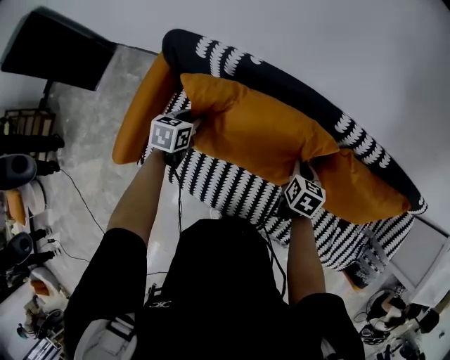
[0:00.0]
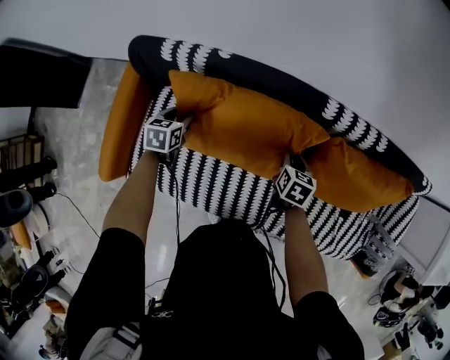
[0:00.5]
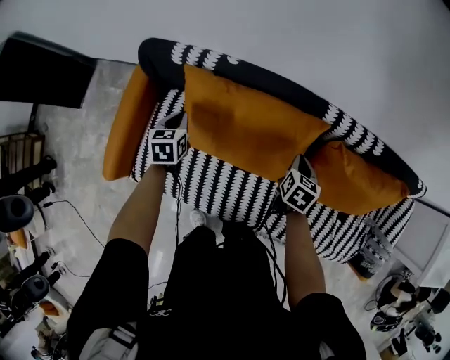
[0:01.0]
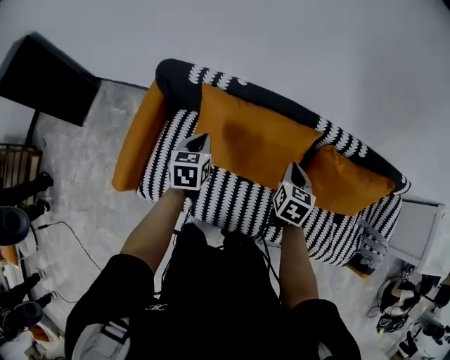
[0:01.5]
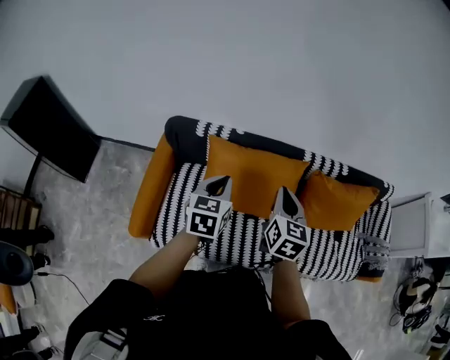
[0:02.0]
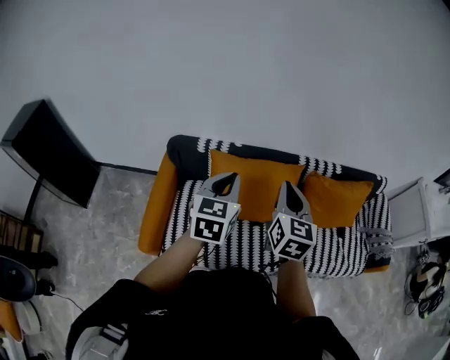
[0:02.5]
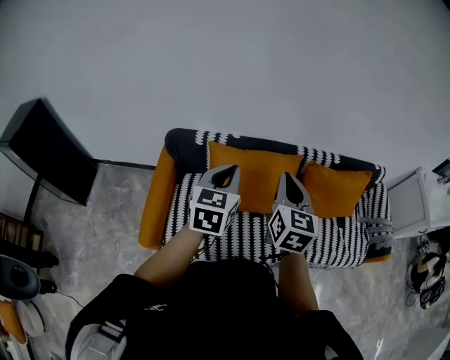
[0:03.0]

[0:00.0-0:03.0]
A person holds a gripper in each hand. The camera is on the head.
0:00.0 to 0:01.5: The two grippers go approximately 10 cm upward.
0:01.5 to 0:03.0: The left gripper moves upward and backward, about 30 cm, and swivels some 30 degrees, while the right gripper is displaced upward, backward and to the left by about 35 cm, and rotates some 30 degrees.

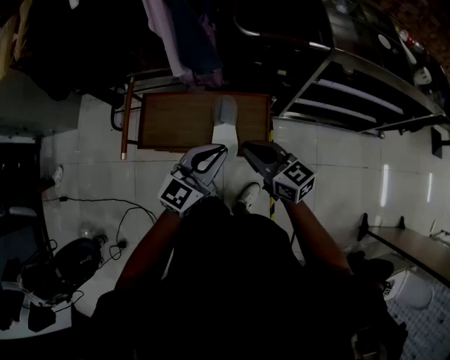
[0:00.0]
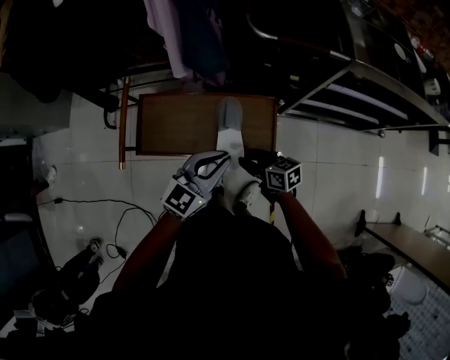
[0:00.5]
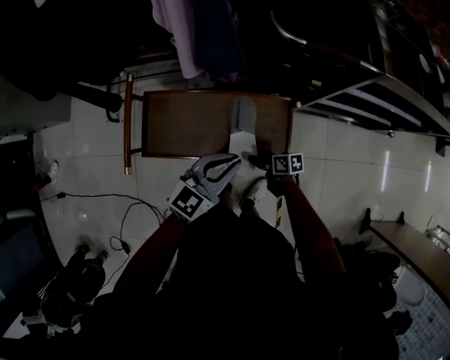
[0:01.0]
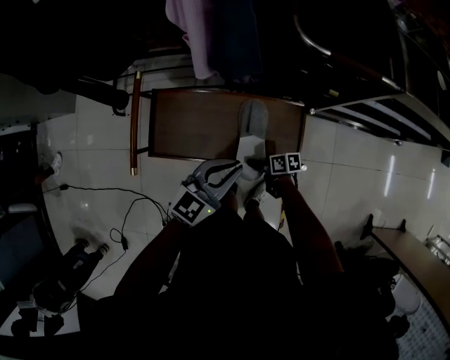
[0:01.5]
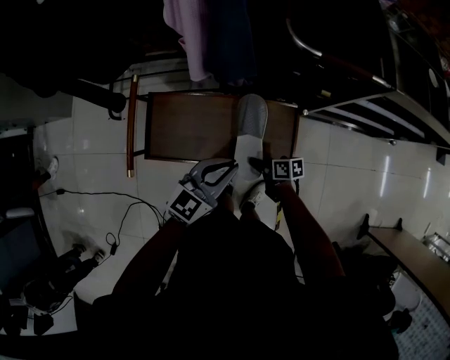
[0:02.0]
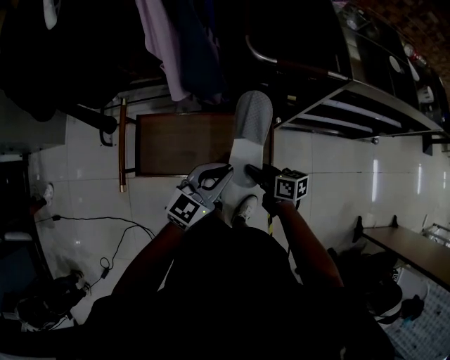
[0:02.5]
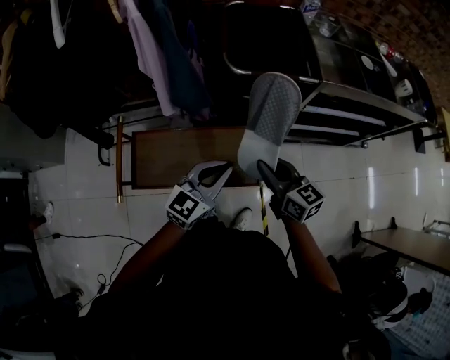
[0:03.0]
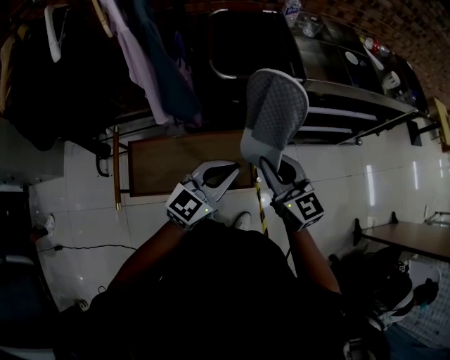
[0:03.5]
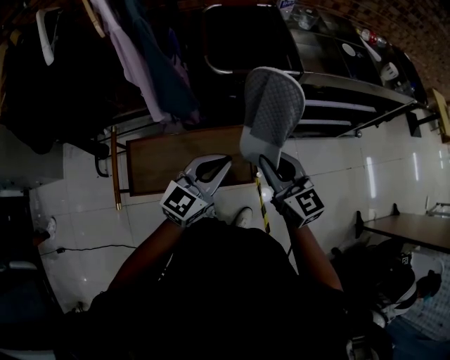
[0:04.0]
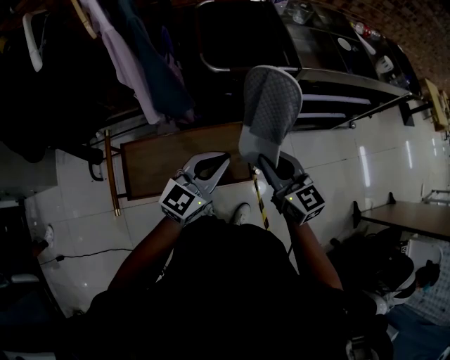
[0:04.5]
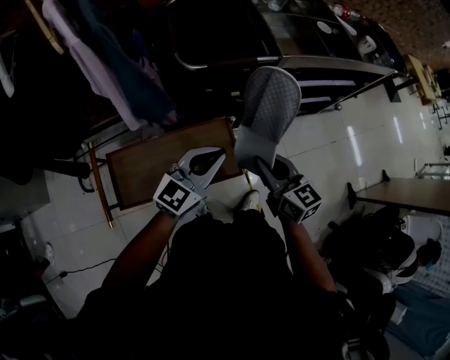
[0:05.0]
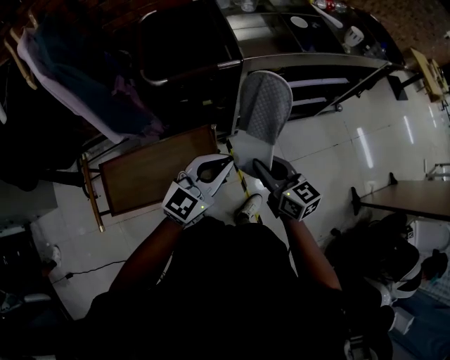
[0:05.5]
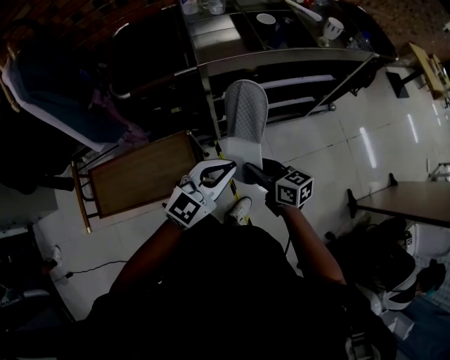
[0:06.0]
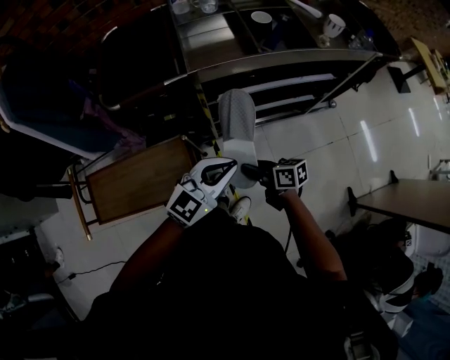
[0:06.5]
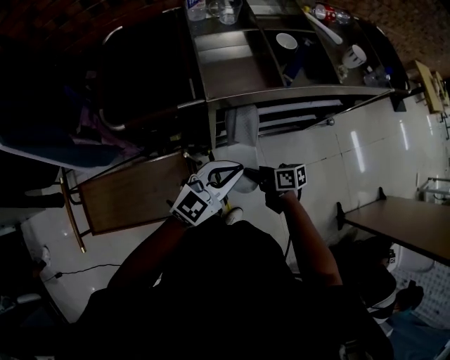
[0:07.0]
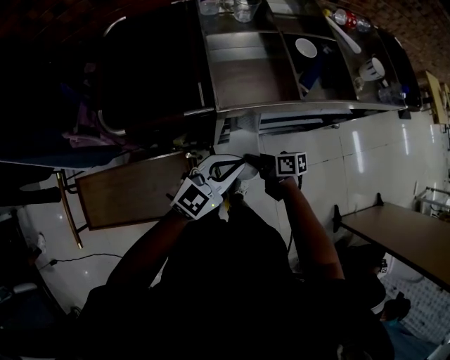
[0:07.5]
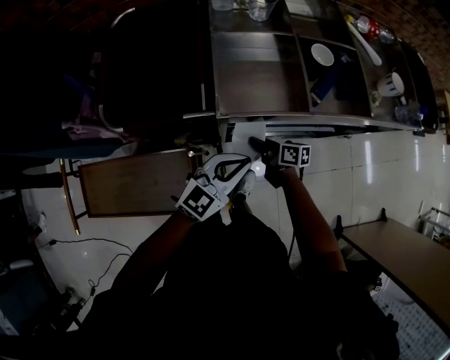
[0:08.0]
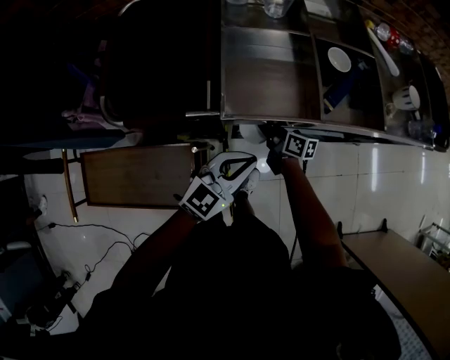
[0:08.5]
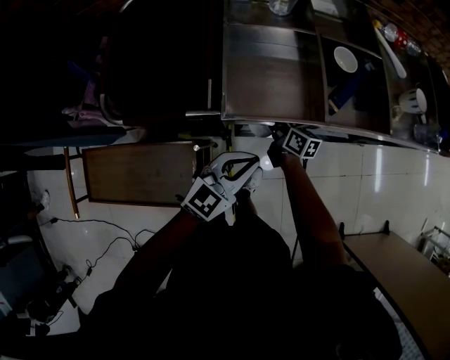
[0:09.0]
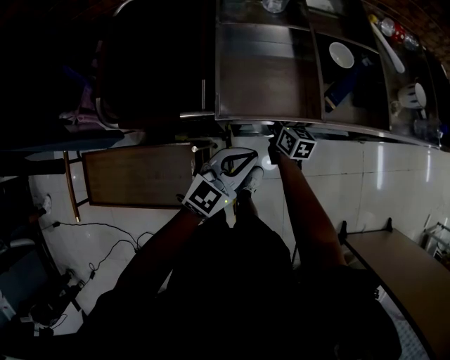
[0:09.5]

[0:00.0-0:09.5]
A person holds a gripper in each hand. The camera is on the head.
0:00.0 to 0:02.0: The left gripper ends up approximately 15 cm from where it was; the right gripper goes about 30 cm downward, twists about 50 degrees clockwise, seen from behind, and opens, then closes again.
0:02.0 to 0:04.0: The right gripper travels upward by about 40 cm, and swivels some 70 degrees. The left gripper heads upward, covering roughly 15 cm.
0:04.0 to 0:05.5: The left gripper travels to the right by some 15 cm; the right gripper goes approximately 15 cm to the right and downward.
0:05.5 to 0:07.5: The right gripper is displaced forward, downward and to the right by roughly 30 cm, and turns by approximately 50 degrees. The left gripper is displaced forward and to the right by about 25 cm.
0:07.5 to 0:09.5: The right gripper moves forward, approximately 20 cm, turns by about 40 degrees, and opens up, while the left gripper travels forward by about 5 cm.

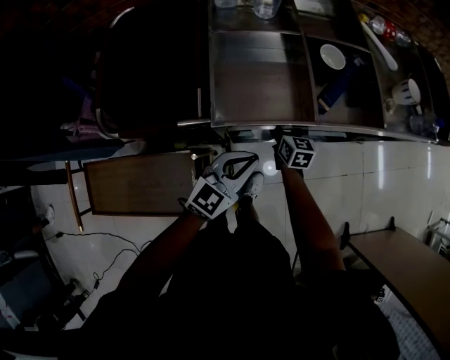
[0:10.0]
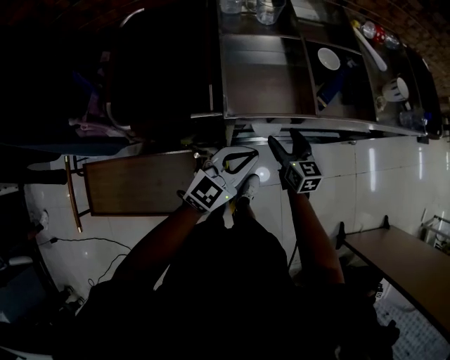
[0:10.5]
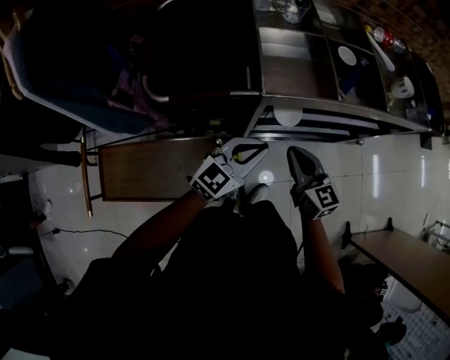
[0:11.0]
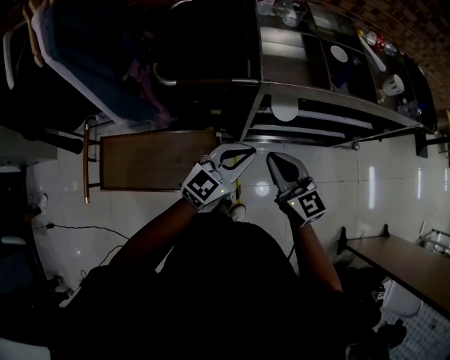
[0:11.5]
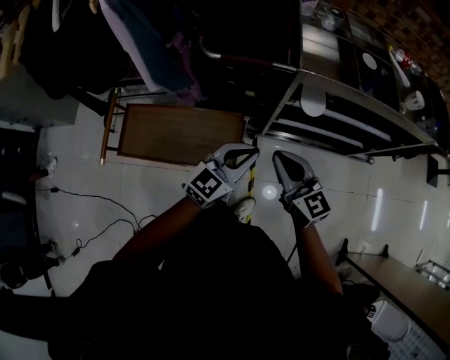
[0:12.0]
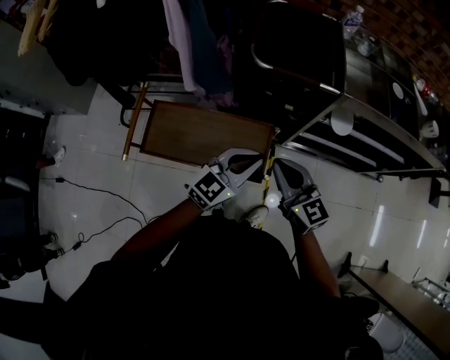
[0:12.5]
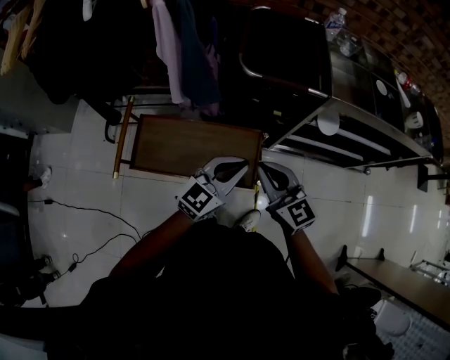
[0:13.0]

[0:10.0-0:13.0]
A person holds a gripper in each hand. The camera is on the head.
0:10.0 to 0:11.5: The left gripper travels backward, upward and to the left by approximately 20 cm; the right gripper moves backward and upward, about 40 cm, swivels about 30 degrees, and closes up.
0:11.5 to 0:13.0: The left gripper goes approximately 25 cm to the left and backward; the right gripper travels to the left by about 25 cm.

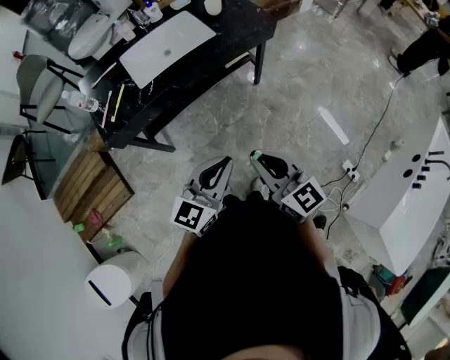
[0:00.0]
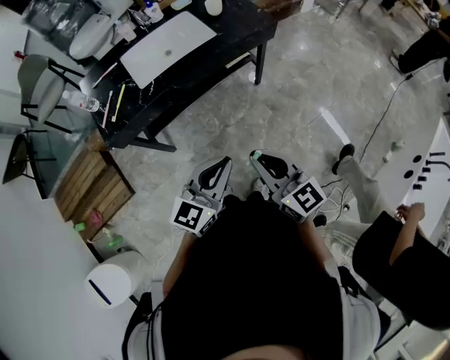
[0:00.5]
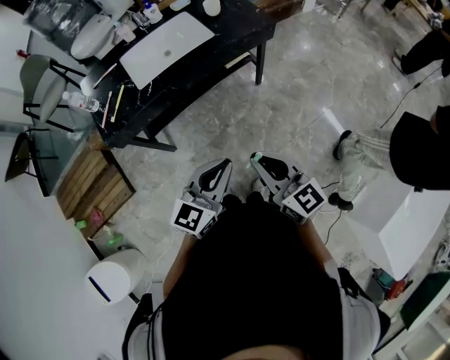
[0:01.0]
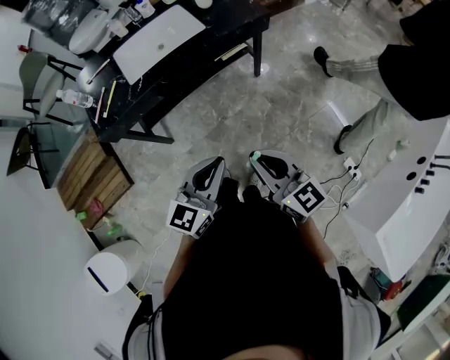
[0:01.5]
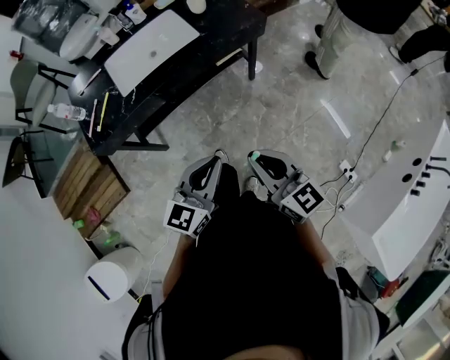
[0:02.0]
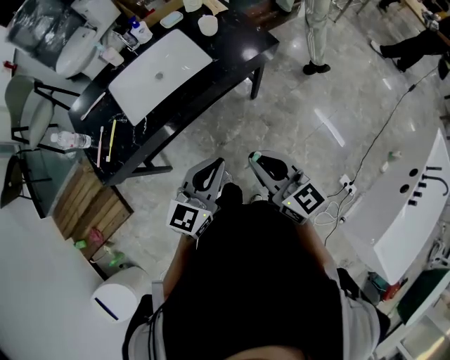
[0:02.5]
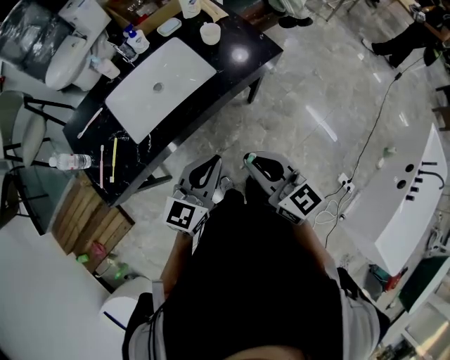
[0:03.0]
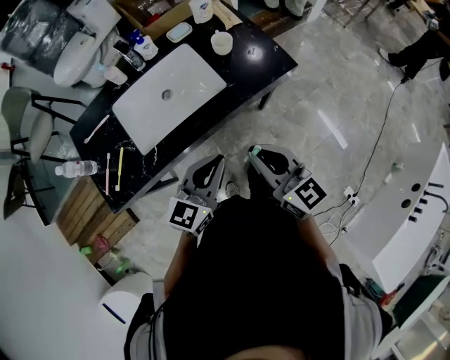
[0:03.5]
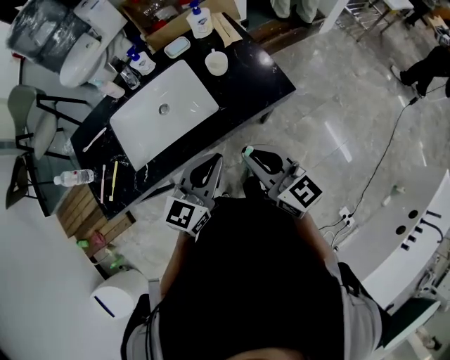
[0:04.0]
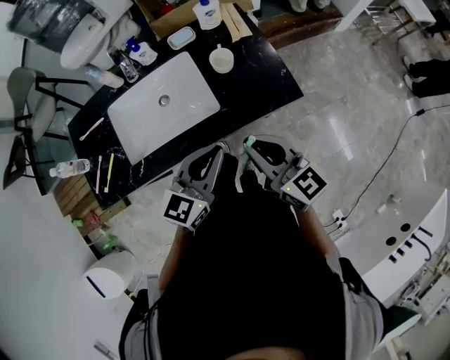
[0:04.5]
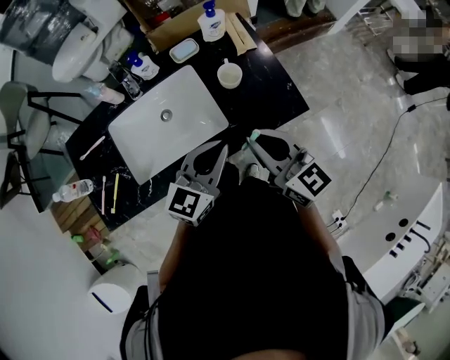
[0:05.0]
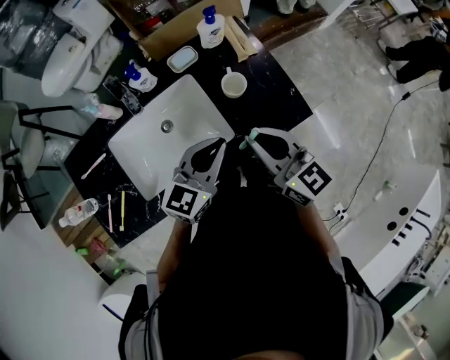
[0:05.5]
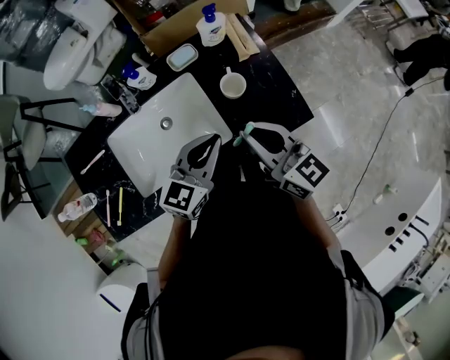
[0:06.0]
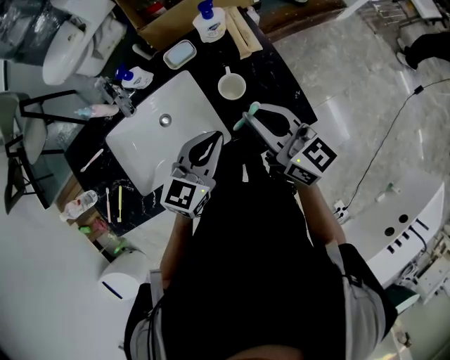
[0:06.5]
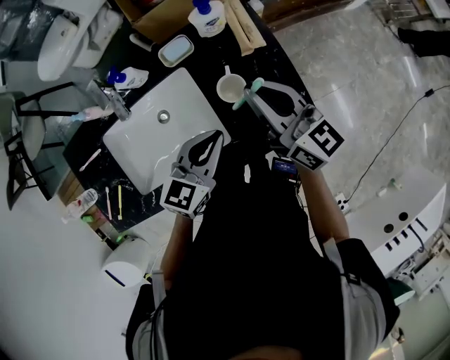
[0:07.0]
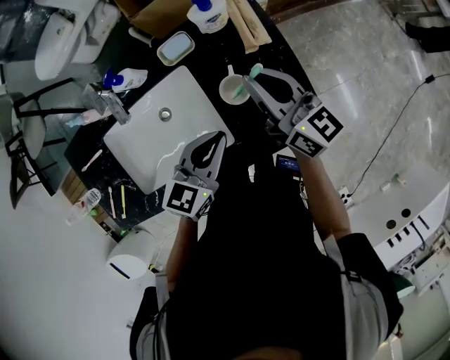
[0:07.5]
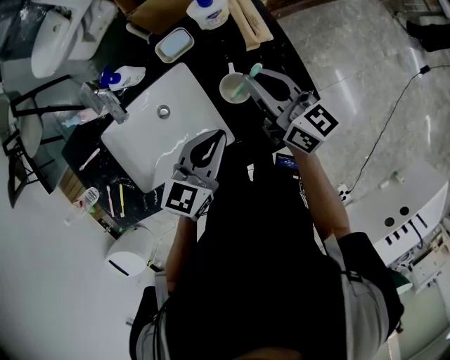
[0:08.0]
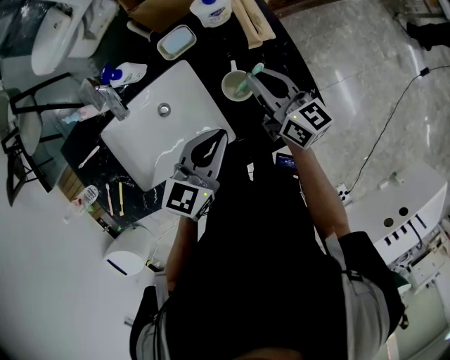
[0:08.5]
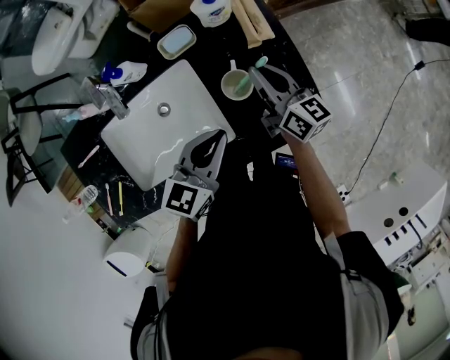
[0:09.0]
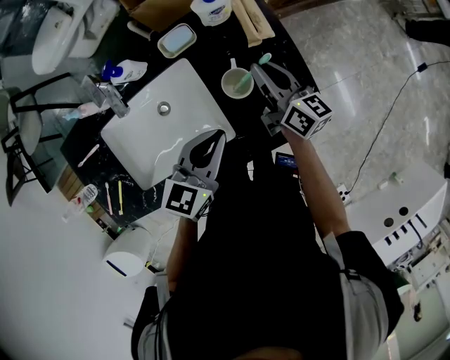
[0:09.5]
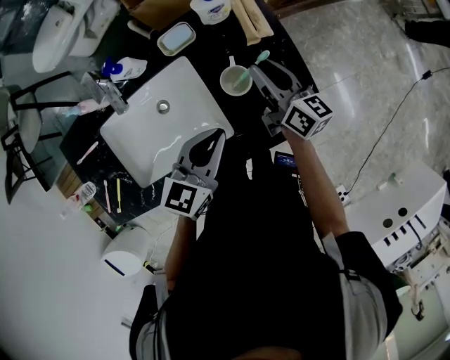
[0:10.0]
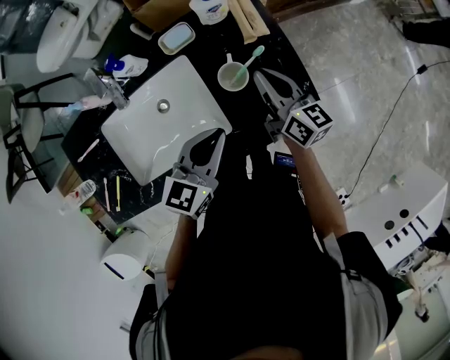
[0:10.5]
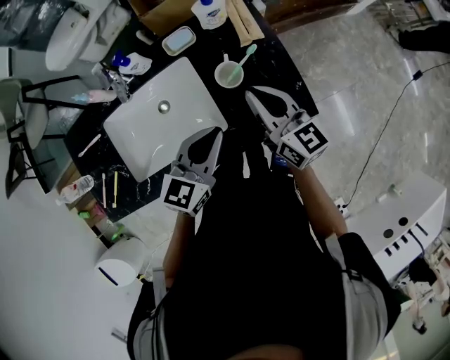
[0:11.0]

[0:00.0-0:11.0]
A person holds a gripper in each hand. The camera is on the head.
0:00.0 to 0:02.0: The left gripper shifts about 5 cm forward and to the right, while the right gripper travels to the right by roughly 5 cm.
0:02.0 to 0:03.5: Both grippers move forward, about 25 cm.
0:03.5 to 0:05.5: Both grippers travel together forward, about 25 cm.
0:05.5 to 0:07.5: The left gripper goes about 10 cm forward and downward. Meanwhile the right gripper moves forward, approximately 20 cm.
0:07.5 to 0:09.0: The right gripper is displaced downward by approximately 10 cm.
0:09.0 to 0:11.0: The left gripper ends up roughly 5 cm from where it was. The right gripper travels backward and upward by roughly 15 cm, and opens, then closes once more.
